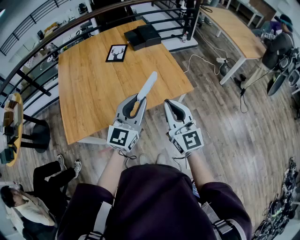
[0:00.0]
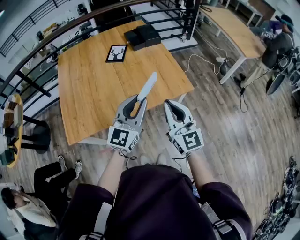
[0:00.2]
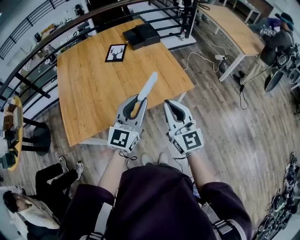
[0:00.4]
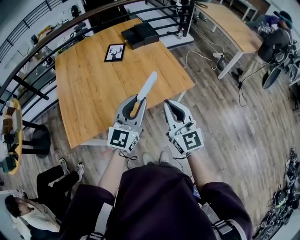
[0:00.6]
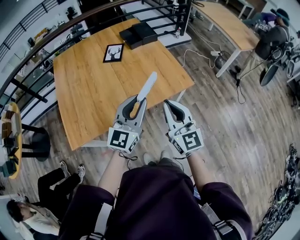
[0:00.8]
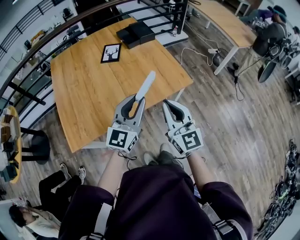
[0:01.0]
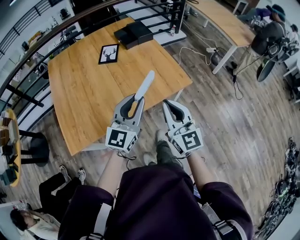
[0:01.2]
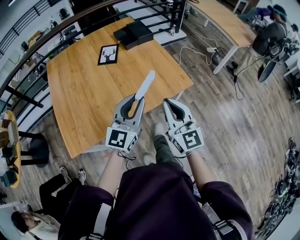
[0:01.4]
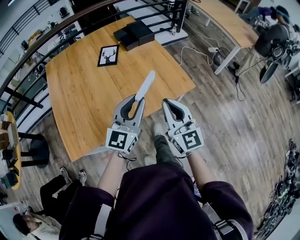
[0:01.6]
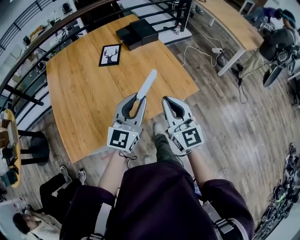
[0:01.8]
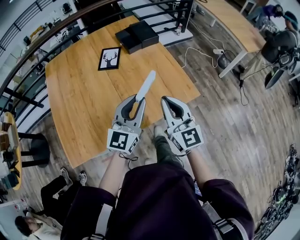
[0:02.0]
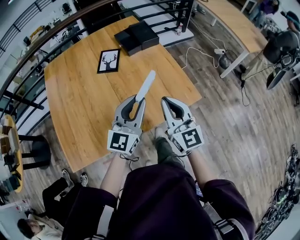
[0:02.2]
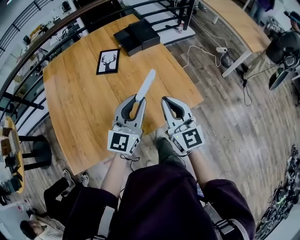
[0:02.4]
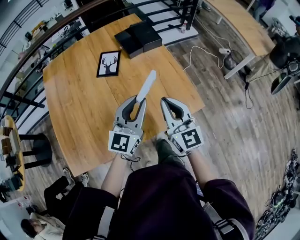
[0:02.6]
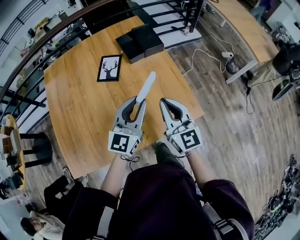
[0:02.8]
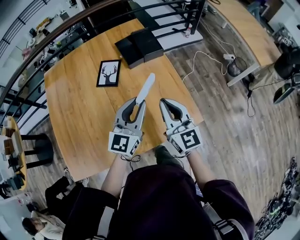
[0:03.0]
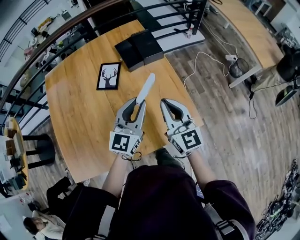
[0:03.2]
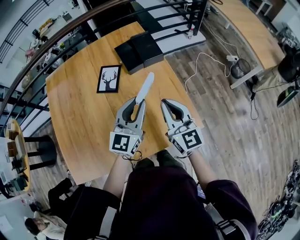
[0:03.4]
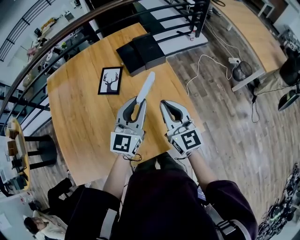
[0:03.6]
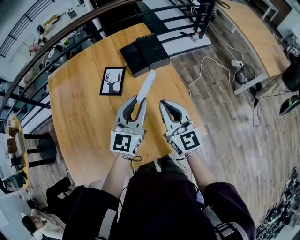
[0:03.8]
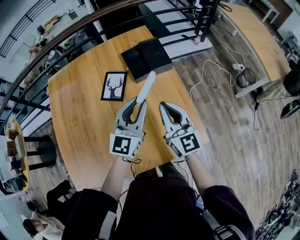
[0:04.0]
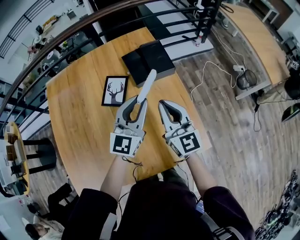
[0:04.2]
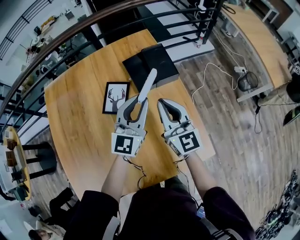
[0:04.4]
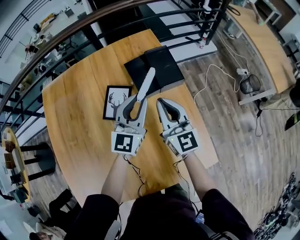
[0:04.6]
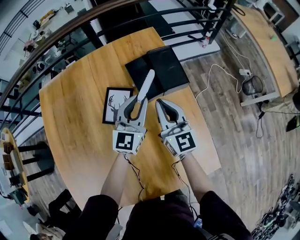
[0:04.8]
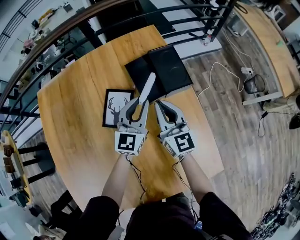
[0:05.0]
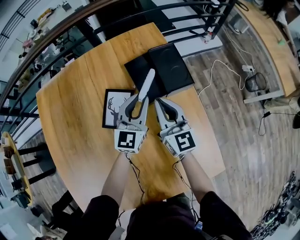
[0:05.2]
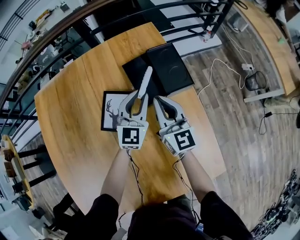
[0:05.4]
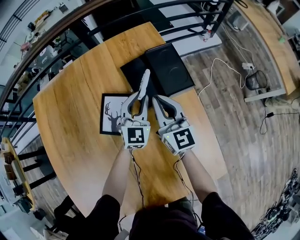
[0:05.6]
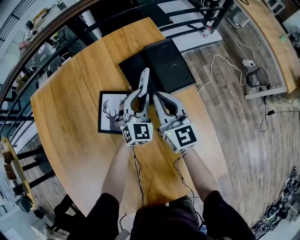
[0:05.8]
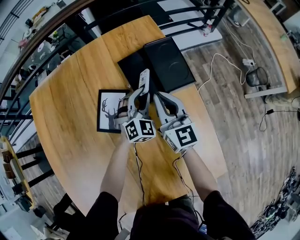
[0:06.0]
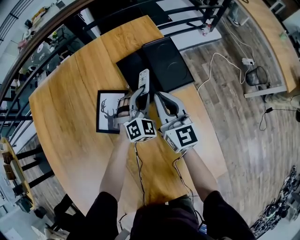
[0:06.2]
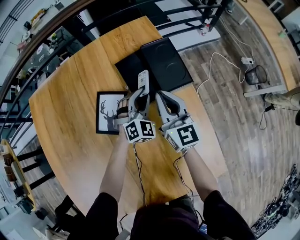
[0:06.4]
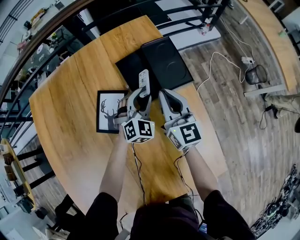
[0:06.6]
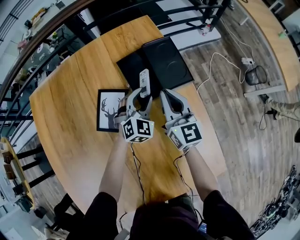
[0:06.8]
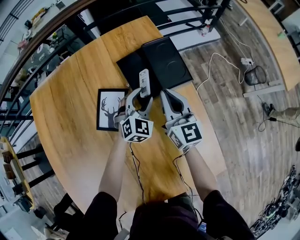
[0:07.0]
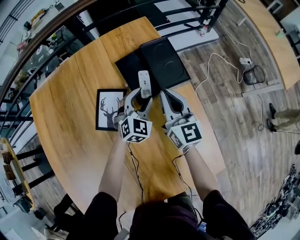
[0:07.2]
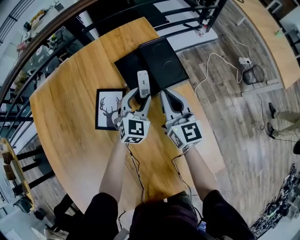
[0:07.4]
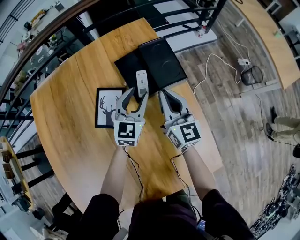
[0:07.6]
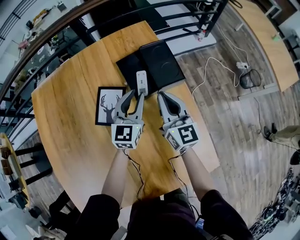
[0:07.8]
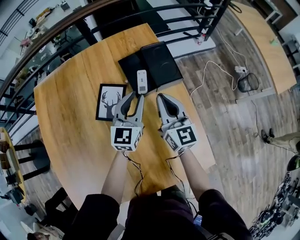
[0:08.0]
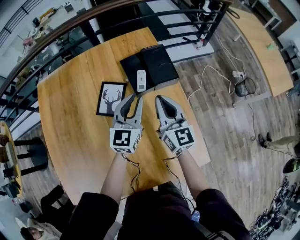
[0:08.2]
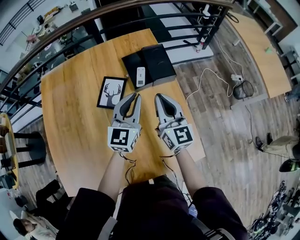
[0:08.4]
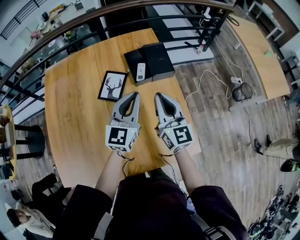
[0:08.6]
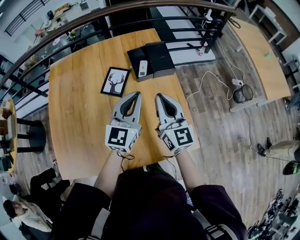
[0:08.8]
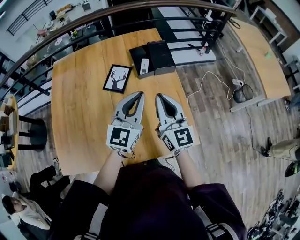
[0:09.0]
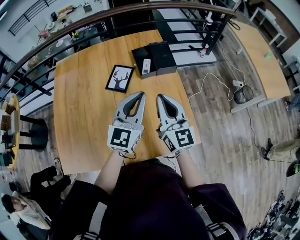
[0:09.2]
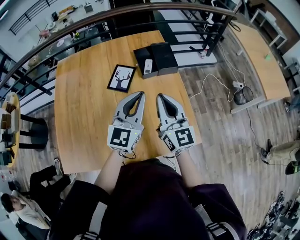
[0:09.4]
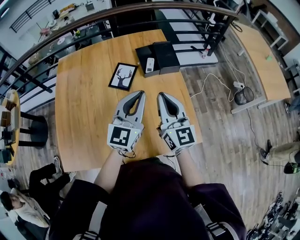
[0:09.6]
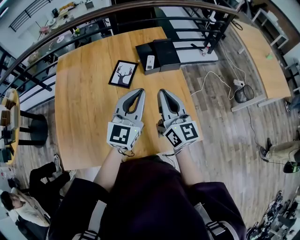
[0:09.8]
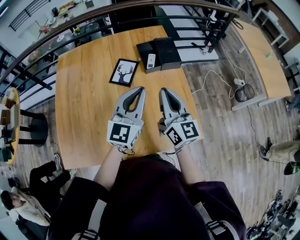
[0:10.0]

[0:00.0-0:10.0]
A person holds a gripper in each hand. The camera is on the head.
0:00.0 to 0:01.4: The left gripper shifts by about 5 cm. Meanwhile the right gripper shifts by about 5 cm.
0:01.4 to 0:02.8: Both grippers move forward, roughly 25 cm.
0:02.8 to 0:04.2: Both grippers move forward, approximately 20 cm.
0:04.2 to 0:05.8: Both grippers move forward and downward, approximately 30 cm. The left gripper turns by some 30 degrees.
0:05.8 to 0:07.2: The left gripper opens up.
0:07.2 to 0:08.6: The right gripper goes approximately 25 cm backward and upward, while the left gripper moves upward and backward, roughly 35 cm, rotates roughly 40 degrees, and closes.
0:08.6 to 0:10.0: The left gripper travels backward and upward by roughly 15 cm; the right gripper goes some 10 cm backward.

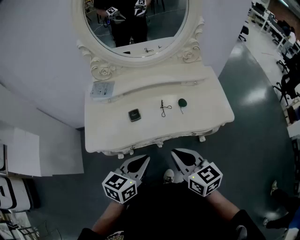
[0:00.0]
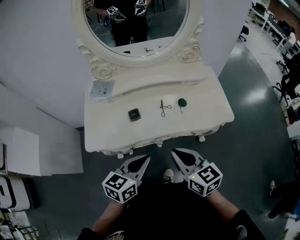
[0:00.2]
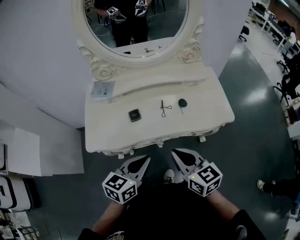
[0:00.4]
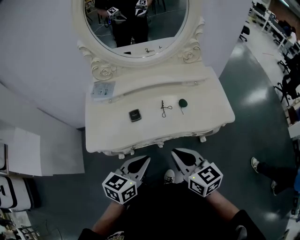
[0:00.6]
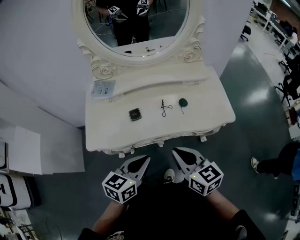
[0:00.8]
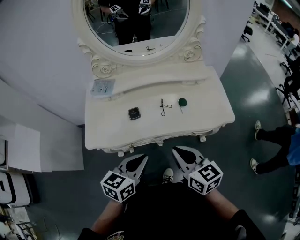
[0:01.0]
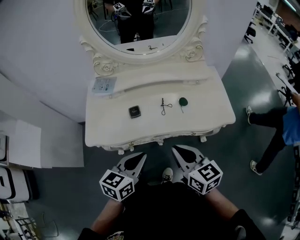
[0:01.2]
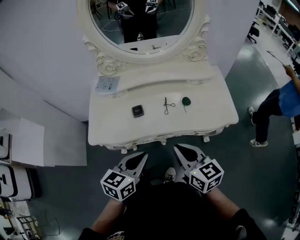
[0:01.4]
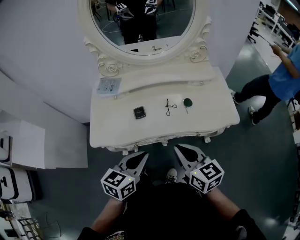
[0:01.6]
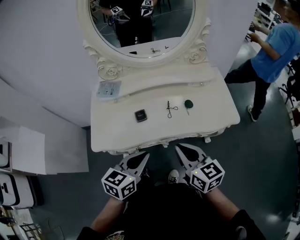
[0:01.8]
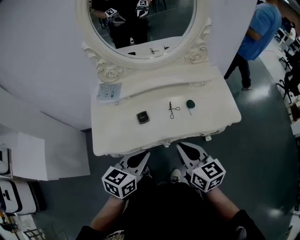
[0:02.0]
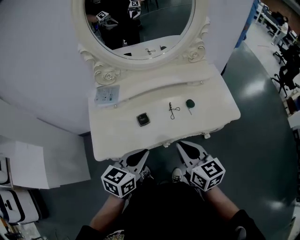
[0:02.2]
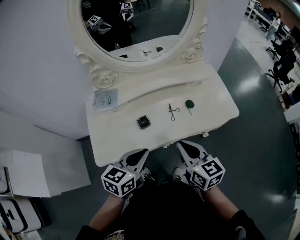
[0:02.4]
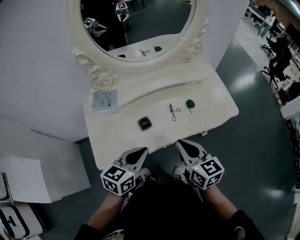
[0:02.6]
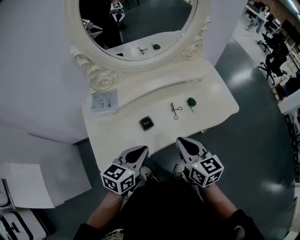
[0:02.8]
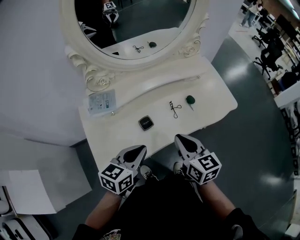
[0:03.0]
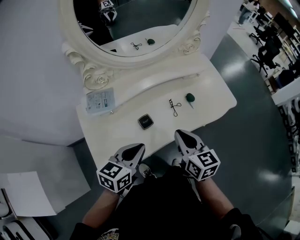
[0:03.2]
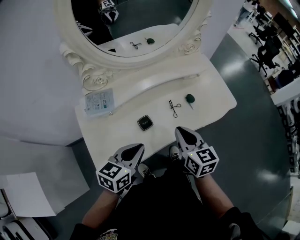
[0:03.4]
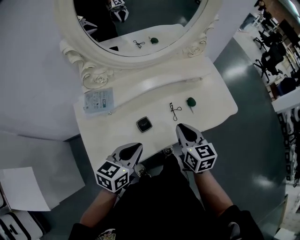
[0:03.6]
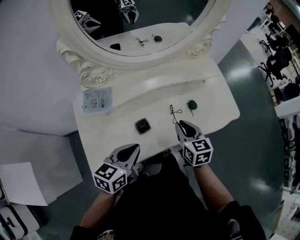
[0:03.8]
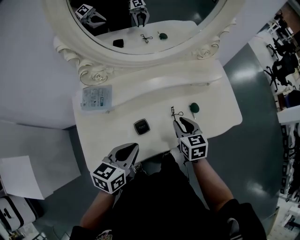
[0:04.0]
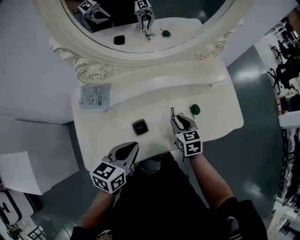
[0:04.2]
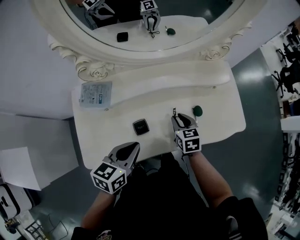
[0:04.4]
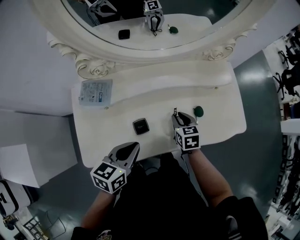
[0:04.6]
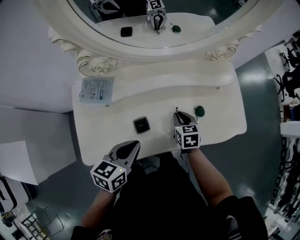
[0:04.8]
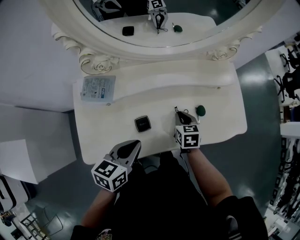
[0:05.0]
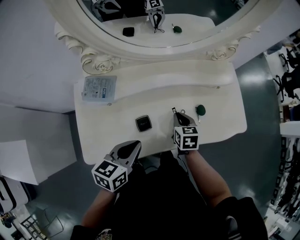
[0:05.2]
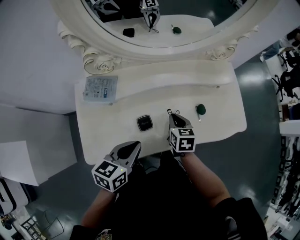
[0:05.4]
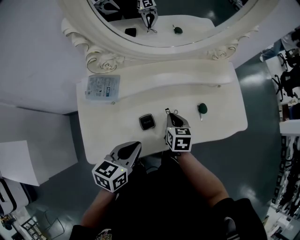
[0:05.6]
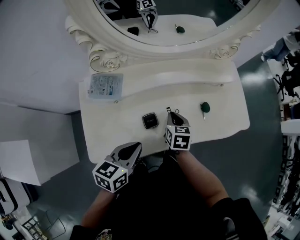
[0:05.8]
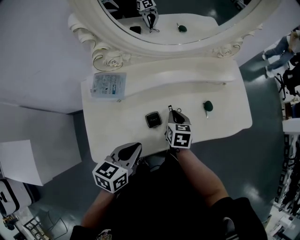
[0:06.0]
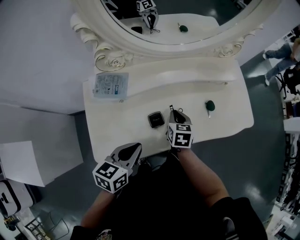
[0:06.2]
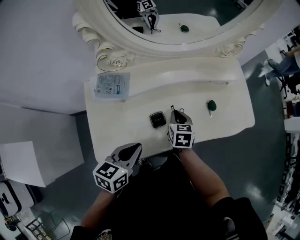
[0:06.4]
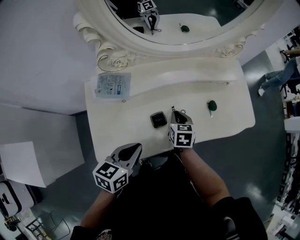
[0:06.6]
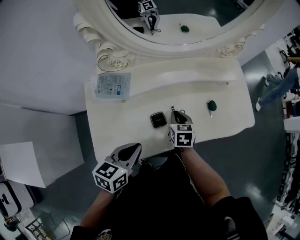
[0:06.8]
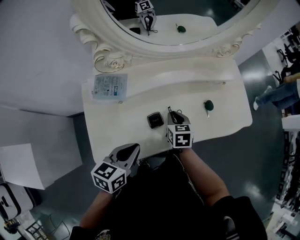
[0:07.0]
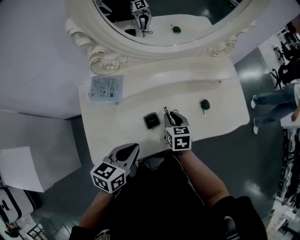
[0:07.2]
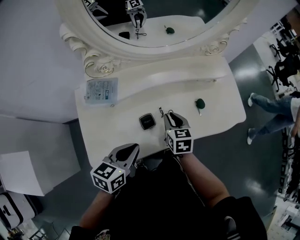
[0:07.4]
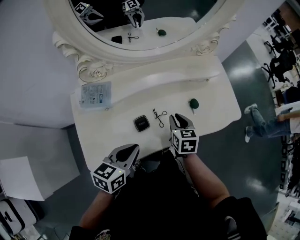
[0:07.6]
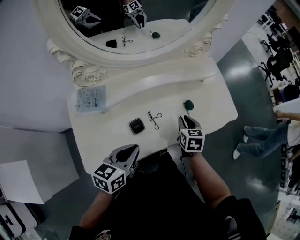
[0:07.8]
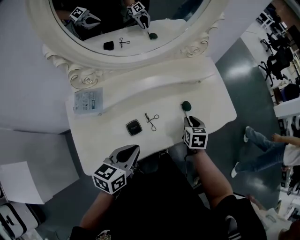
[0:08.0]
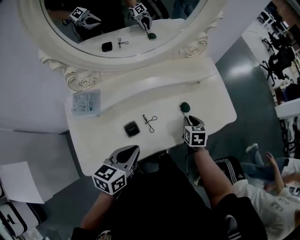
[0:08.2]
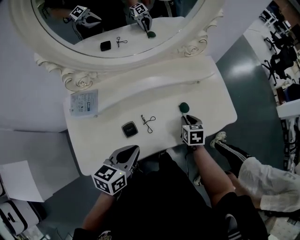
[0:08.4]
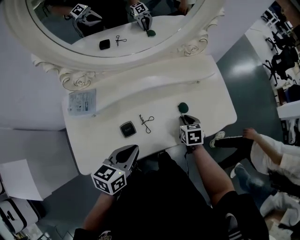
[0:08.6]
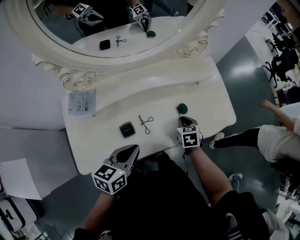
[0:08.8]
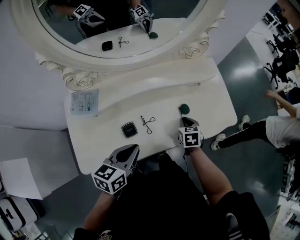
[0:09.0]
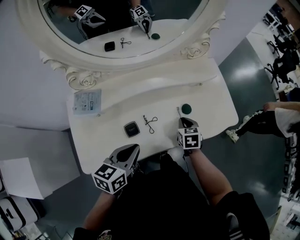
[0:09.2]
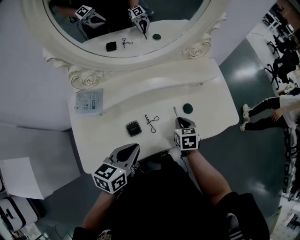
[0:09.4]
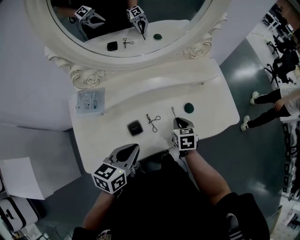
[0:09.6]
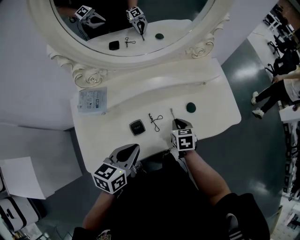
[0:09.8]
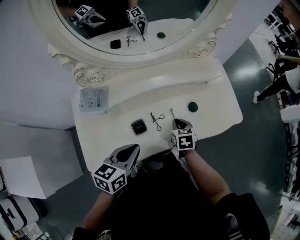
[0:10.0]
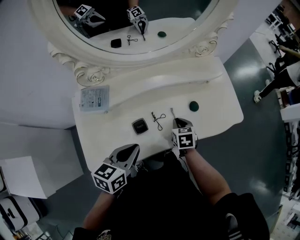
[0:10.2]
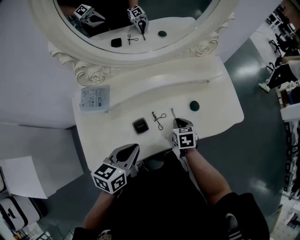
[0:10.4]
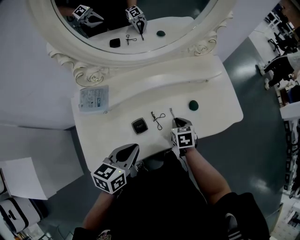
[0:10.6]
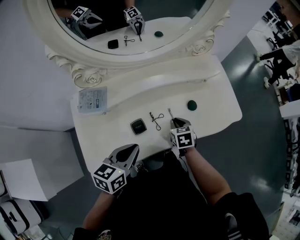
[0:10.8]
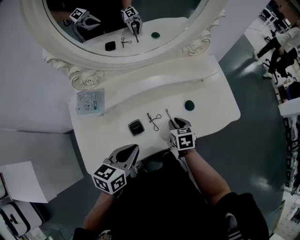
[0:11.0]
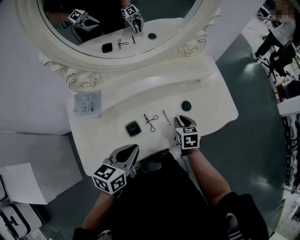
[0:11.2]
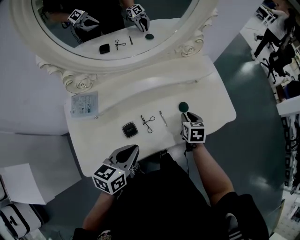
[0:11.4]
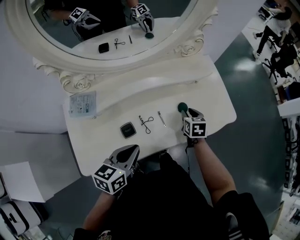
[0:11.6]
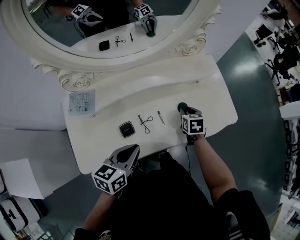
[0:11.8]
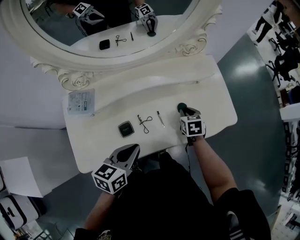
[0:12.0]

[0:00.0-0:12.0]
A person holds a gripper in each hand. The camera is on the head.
0:00.0 to 0:01.6: The grippers move only a little.
0:01.6 to 0:03.0: The two grippers go some 15 cm to the left and forward. The right gripper swivels approximately 20 degrees.
0:03.0 to 0:04.4: The right gripper goes about 25 cm forward and downward, and rotates approximately 30 degrees. The left gripper is displaced forward by approximately 10 cm.
0:04.4 to 0:06.0: The right gripper heads to the left, covering approximately 5 cm. The left gripper ends up approximately 5 cm from where it was.
0:06.0 to 0:07.6: The right gripper shifts approximately 5 cm to the right.
0:07.6 to 0:09.0: The right gripper travels to the right, downward and forward by approximately 15 cm. The left gripper is displaced to the right and forward by roughly 10 cm.
0:09.0 to 0:10.4: The right gripper travels to the left by roughly 10 cm. The left gripper moves about 5 cm.
0:10.4 to 0:12.0: The right gripper is displaced forward and to the right by roughly 15 cm; the left gripper travels to the right by roughly 5 cm.

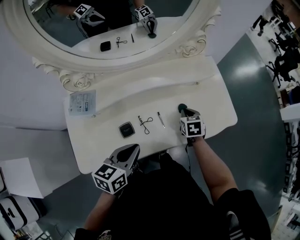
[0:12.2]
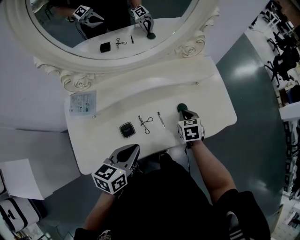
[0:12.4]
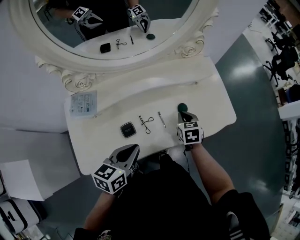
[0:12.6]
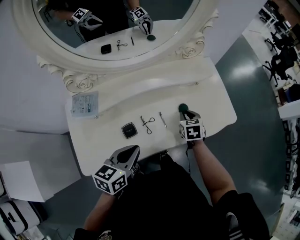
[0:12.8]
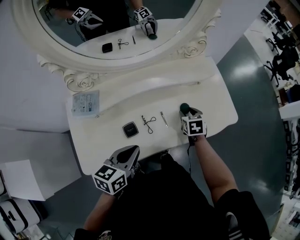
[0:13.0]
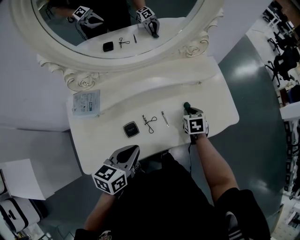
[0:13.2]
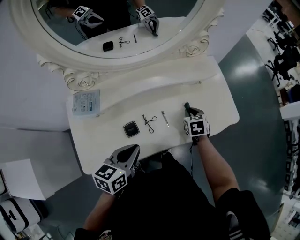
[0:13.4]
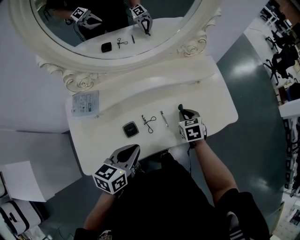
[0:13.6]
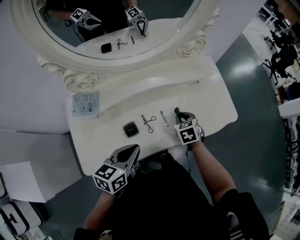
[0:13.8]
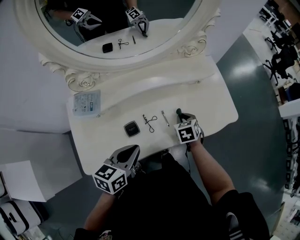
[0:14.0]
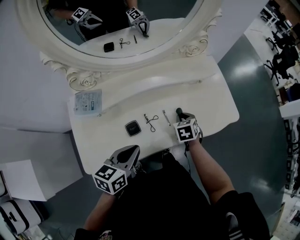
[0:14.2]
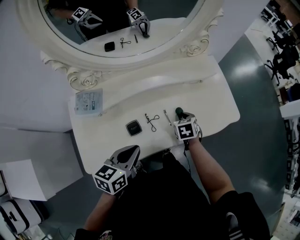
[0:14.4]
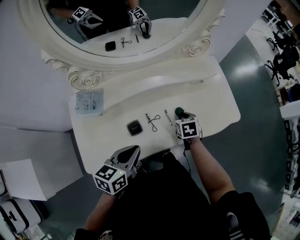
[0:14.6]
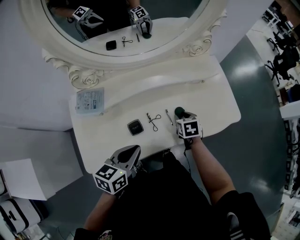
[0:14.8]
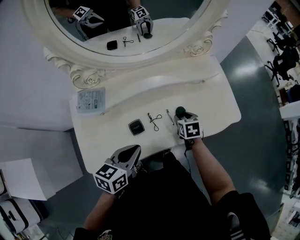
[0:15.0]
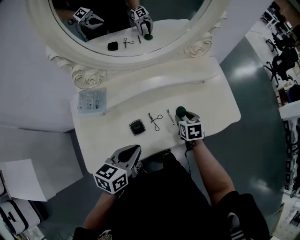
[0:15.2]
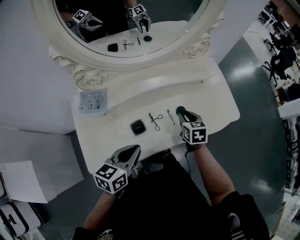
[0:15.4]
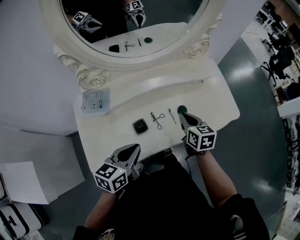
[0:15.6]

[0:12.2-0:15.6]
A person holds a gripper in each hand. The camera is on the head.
0:12.2 to 0:13.8: The right gripper shifts by about 5 cm, and opens, then closes once more.
0:13.8 to 0:15.6: The left gripper shifts by some 5 cm. Meanwhile the right gripper travels upward by about 10 cm, rotates some 30 degrees, and opens and closes again.
